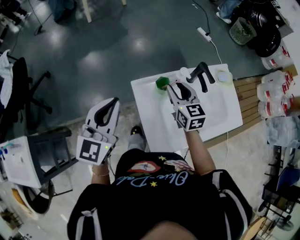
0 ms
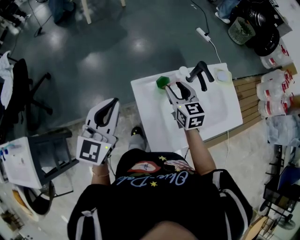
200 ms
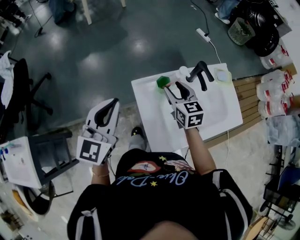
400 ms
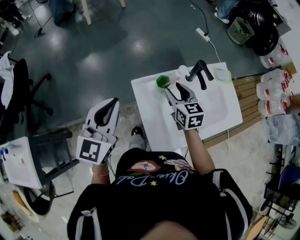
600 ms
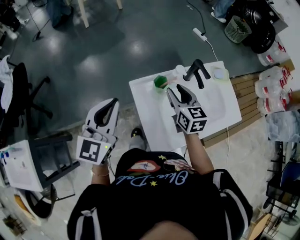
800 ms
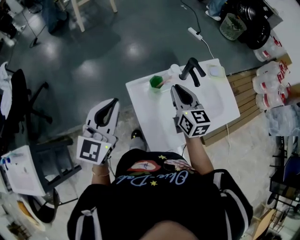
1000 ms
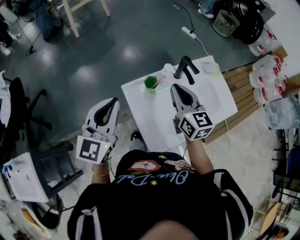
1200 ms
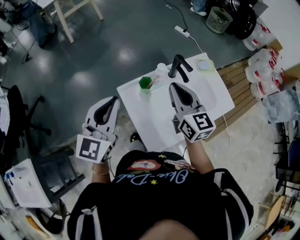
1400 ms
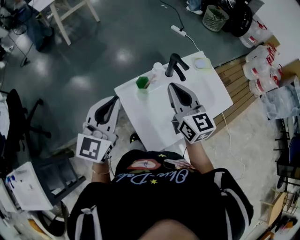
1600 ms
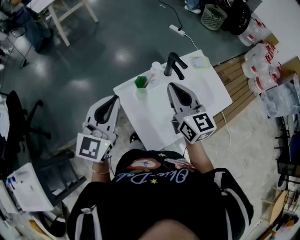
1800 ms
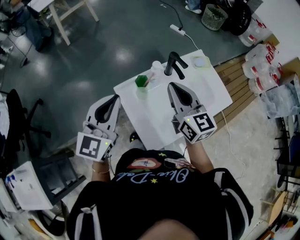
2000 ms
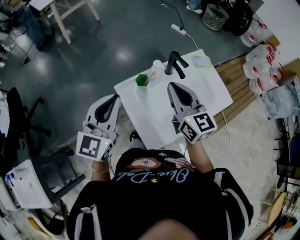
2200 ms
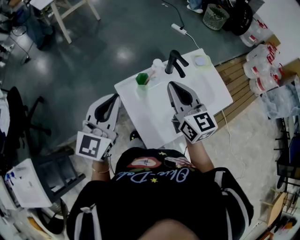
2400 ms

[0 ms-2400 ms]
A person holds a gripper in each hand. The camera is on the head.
0 ms to 1200 ms: The right gripper is displaced upward and backward by roughly 10 cm, and closes its fingers.
1200 ms to 2400 ms: The right gripper shifts by approximately 5 cm.

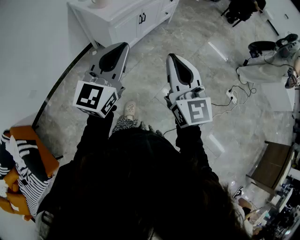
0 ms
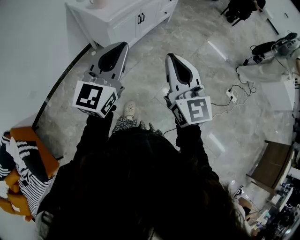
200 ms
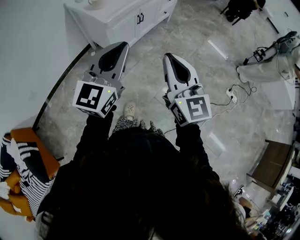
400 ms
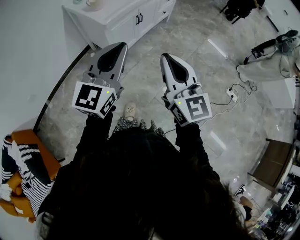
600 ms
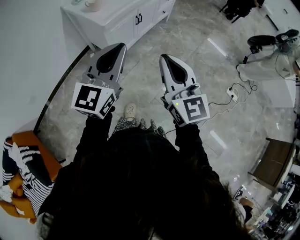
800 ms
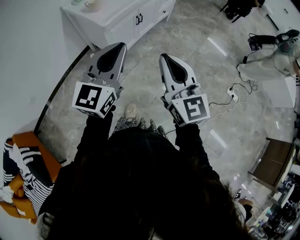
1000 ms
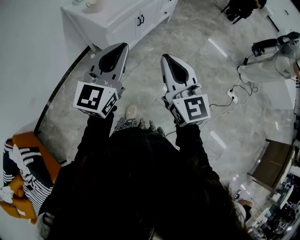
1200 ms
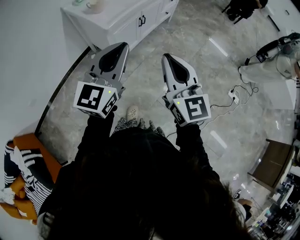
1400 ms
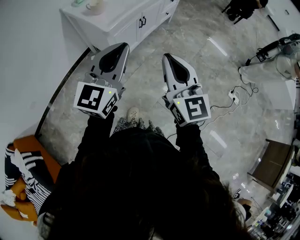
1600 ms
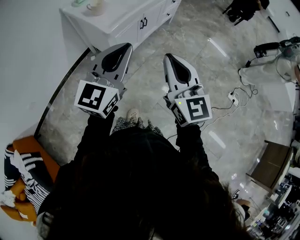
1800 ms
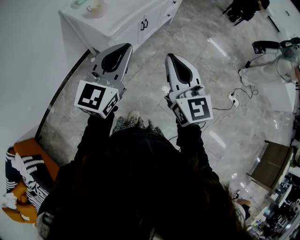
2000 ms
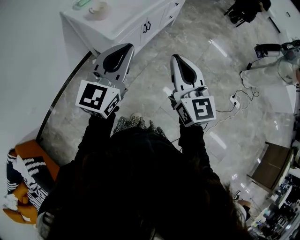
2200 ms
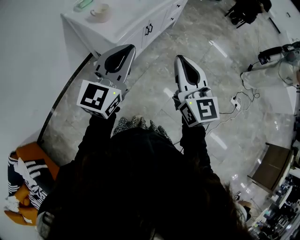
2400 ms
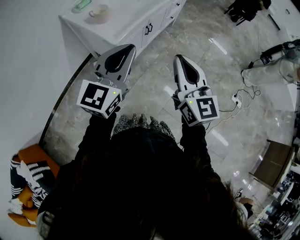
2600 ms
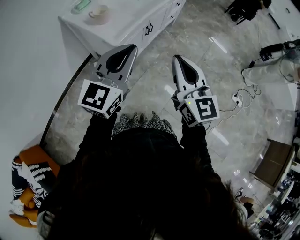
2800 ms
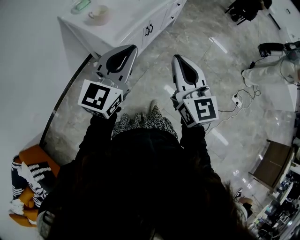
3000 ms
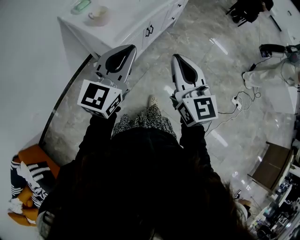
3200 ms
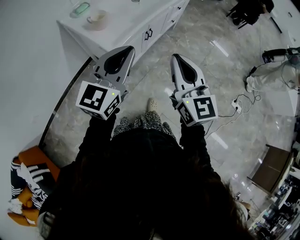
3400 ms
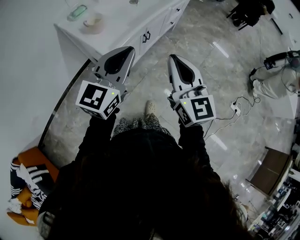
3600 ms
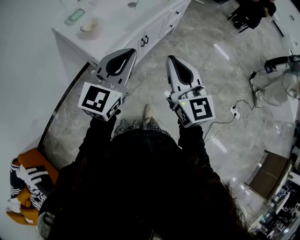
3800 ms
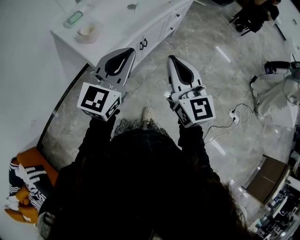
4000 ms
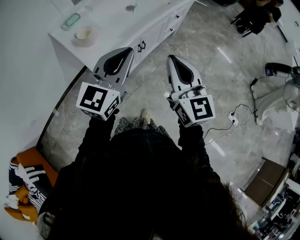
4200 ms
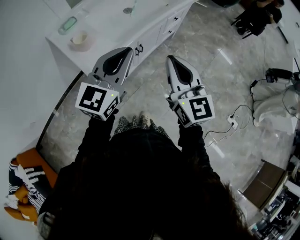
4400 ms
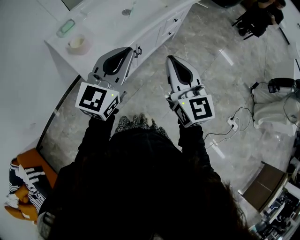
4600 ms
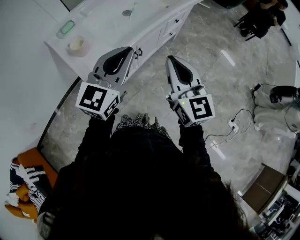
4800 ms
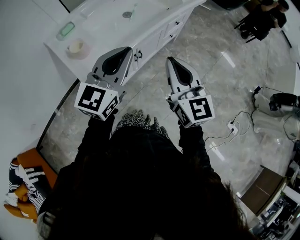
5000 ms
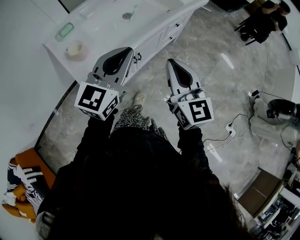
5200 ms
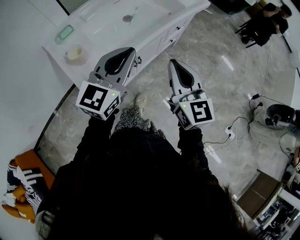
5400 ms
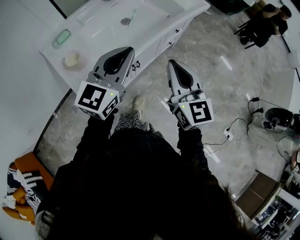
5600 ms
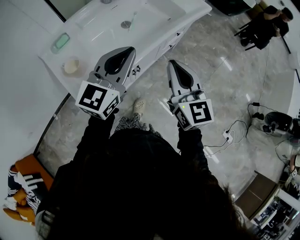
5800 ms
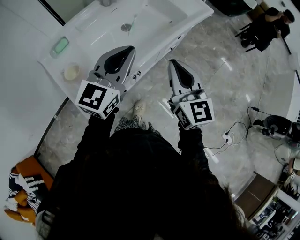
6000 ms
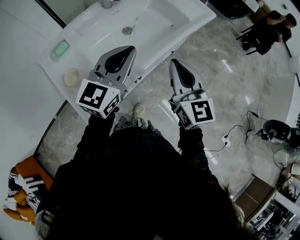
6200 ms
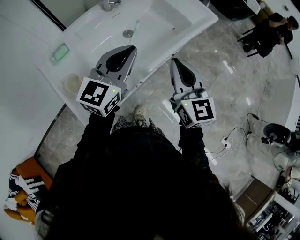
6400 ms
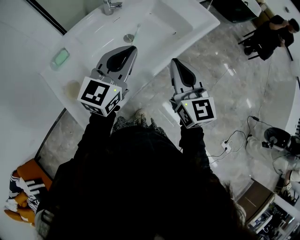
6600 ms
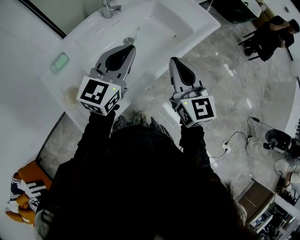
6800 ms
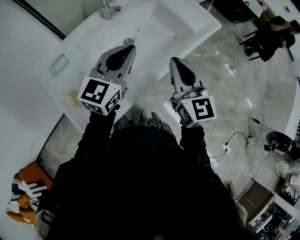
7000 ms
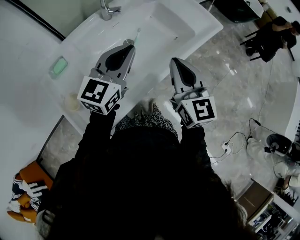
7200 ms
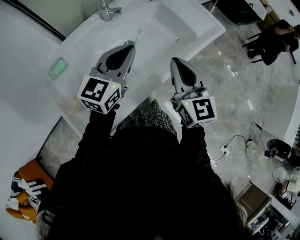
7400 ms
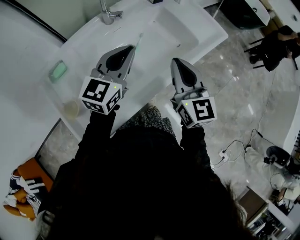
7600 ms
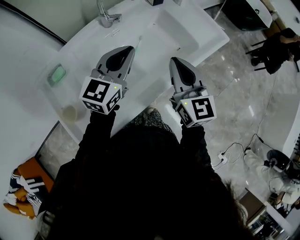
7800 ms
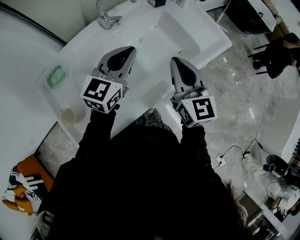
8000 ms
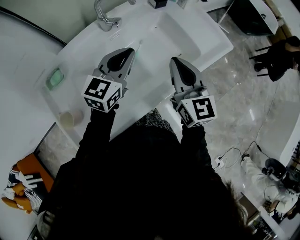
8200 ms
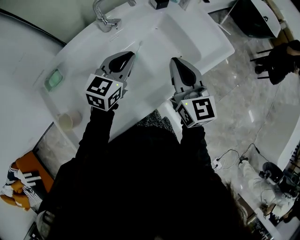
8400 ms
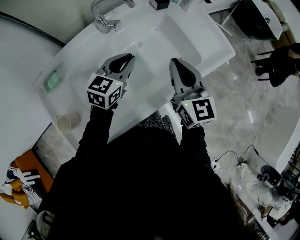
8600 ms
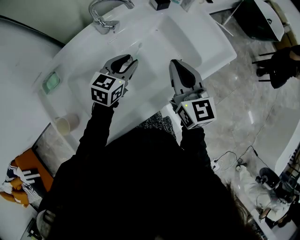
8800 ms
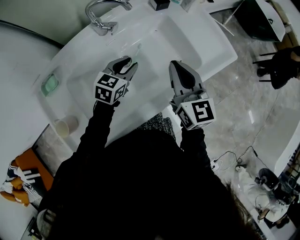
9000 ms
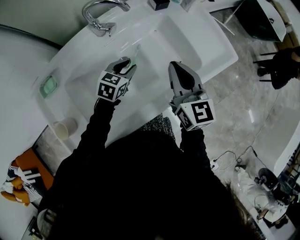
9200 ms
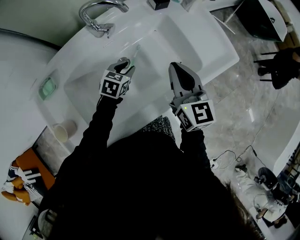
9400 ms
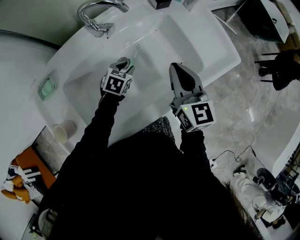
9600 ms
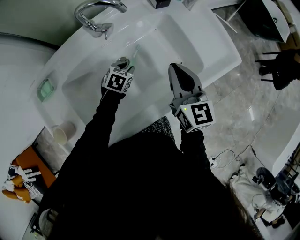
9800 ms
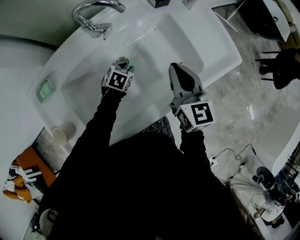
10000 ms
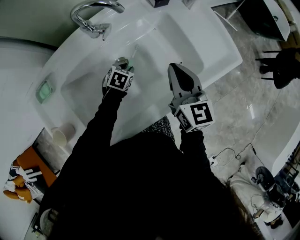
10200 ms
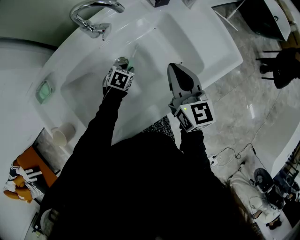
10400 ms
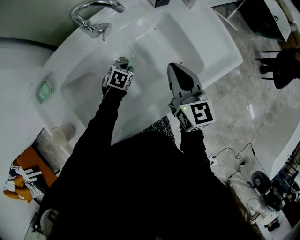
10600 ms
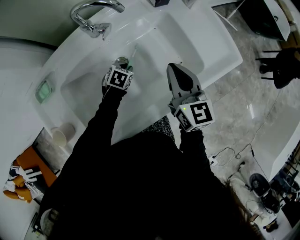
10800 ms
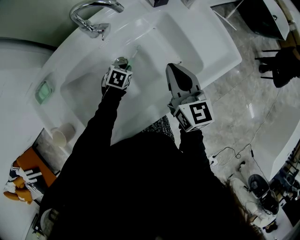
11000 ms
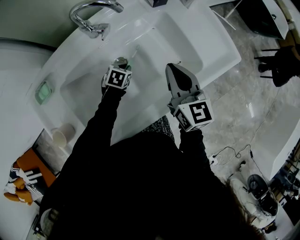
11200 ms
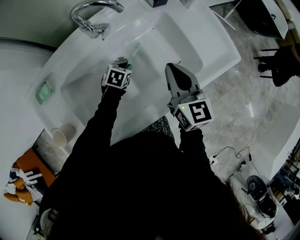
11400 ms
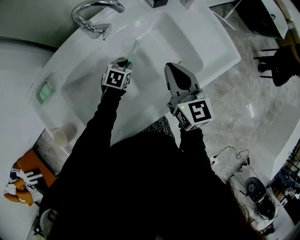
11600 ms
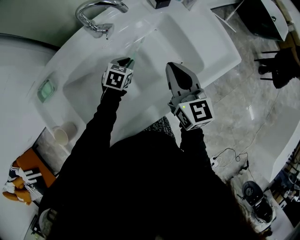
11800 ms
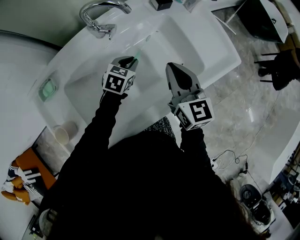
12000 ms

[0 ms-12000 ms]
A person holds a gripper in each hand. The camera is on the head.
0 ms to 1600 ms: The grippers both shift forward by about 10 cm.
1600 ms to 3000 ms: The two grippers go about 10 cm forward.
3000 ms to 4400 ms: The grippers both shift forward and to the right by some 20 cm.
4400 ms to 6000 ms: Both grippers travel together forward, some 20 cm.
6000 ms to 7600 ms: The two grippers go about 20 cm forward.
7600 ms to 9000 ms: The right gripper heads forward, covering about 15 cm, while the left gripper is displaced downward and forward by roughly 20 cm, rotates some 30 degrees, and opens.
9000 ms to 10400 ms: The right gripper ends up approximately 5 cm from where it was; the left gripper is displaced downward by approximately 20 cm, and changes its angle by roughly 30 degrees.
10400 ms to 12000 ms: The left gripper is displaced upward by approximately 10 cm.

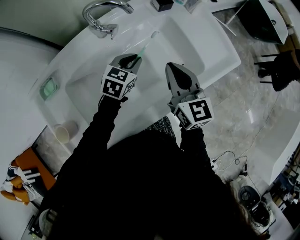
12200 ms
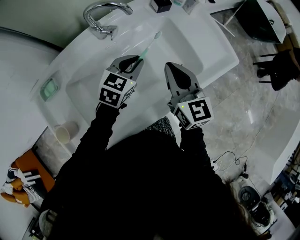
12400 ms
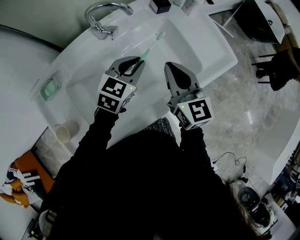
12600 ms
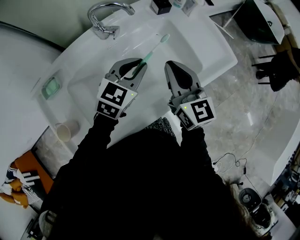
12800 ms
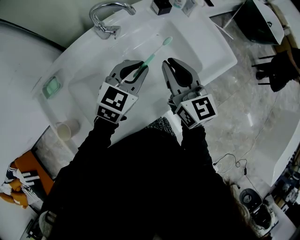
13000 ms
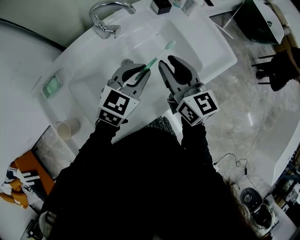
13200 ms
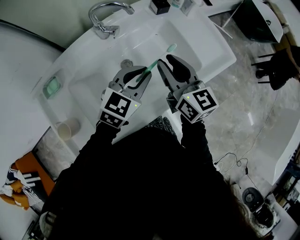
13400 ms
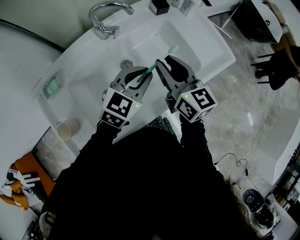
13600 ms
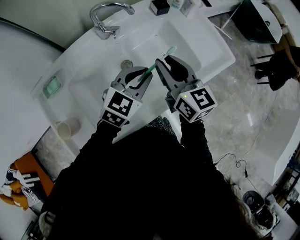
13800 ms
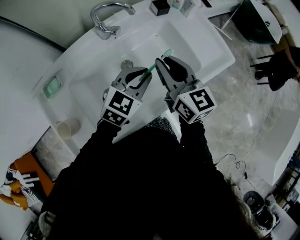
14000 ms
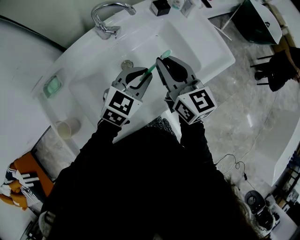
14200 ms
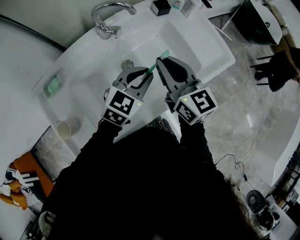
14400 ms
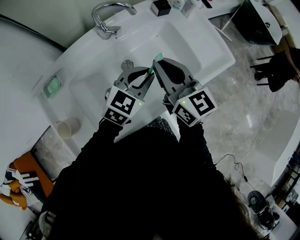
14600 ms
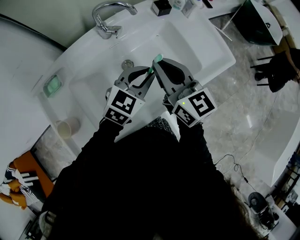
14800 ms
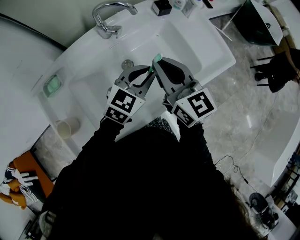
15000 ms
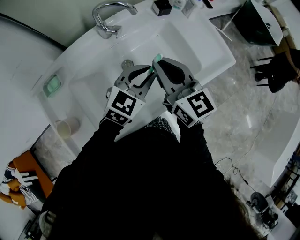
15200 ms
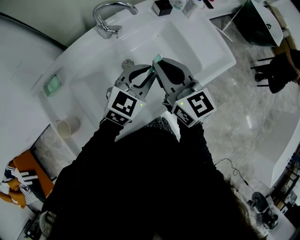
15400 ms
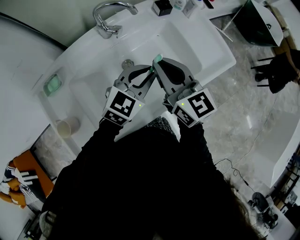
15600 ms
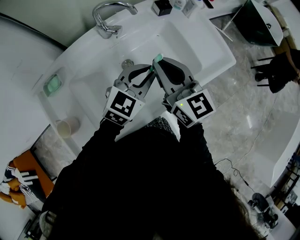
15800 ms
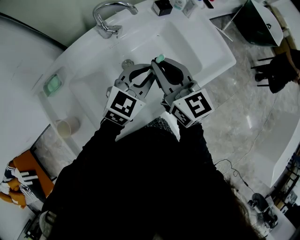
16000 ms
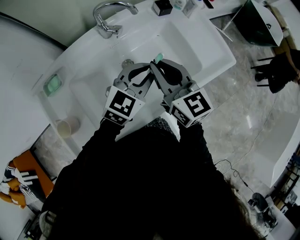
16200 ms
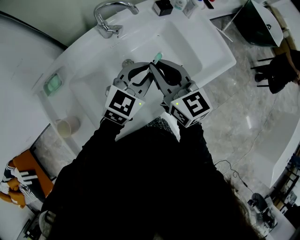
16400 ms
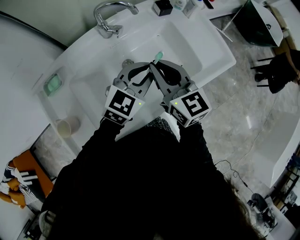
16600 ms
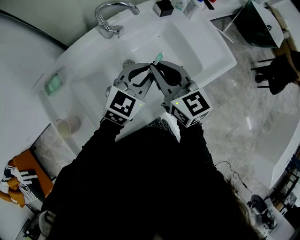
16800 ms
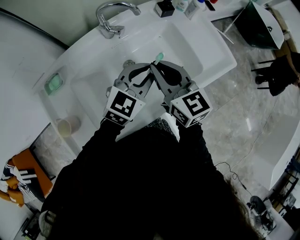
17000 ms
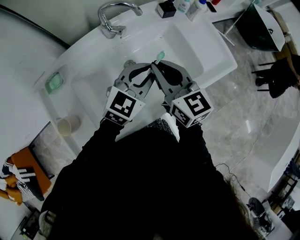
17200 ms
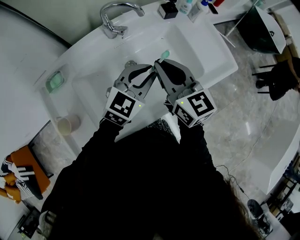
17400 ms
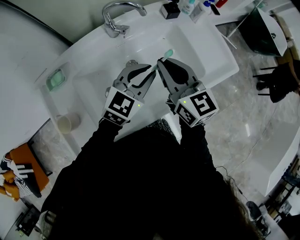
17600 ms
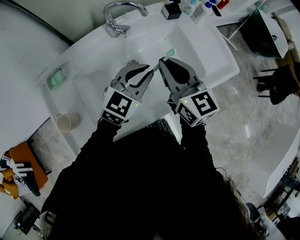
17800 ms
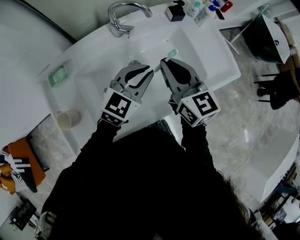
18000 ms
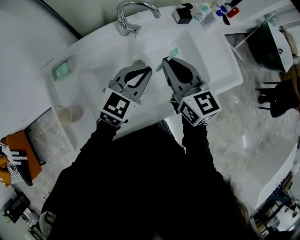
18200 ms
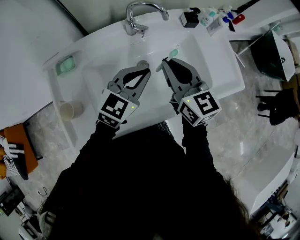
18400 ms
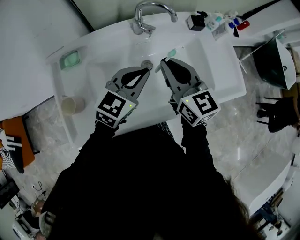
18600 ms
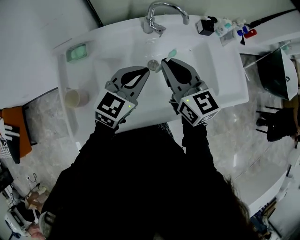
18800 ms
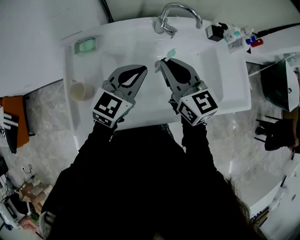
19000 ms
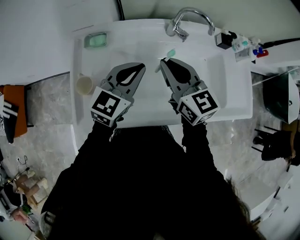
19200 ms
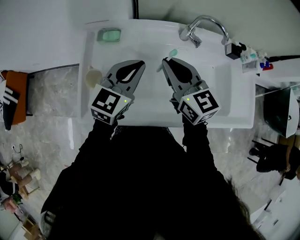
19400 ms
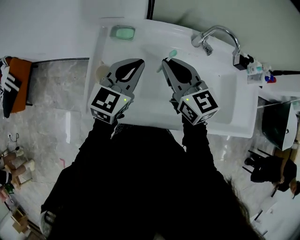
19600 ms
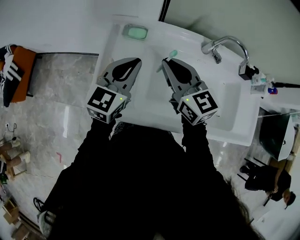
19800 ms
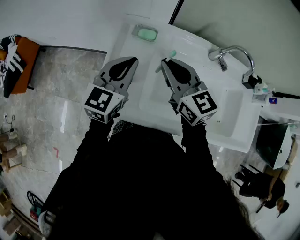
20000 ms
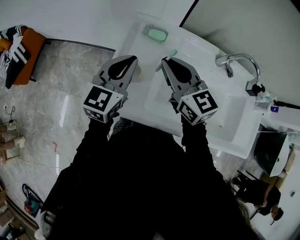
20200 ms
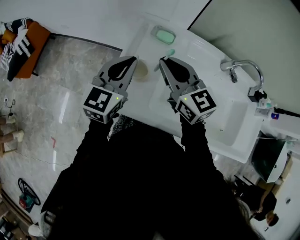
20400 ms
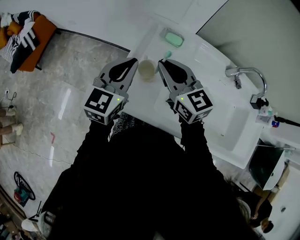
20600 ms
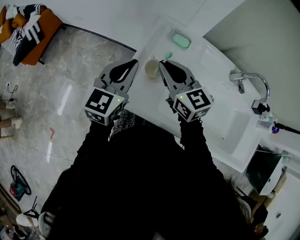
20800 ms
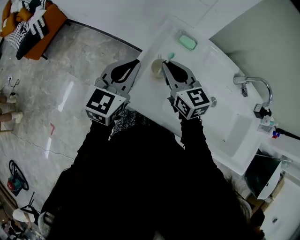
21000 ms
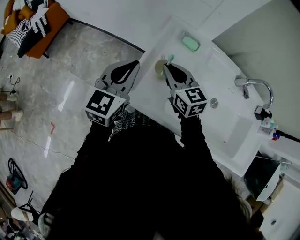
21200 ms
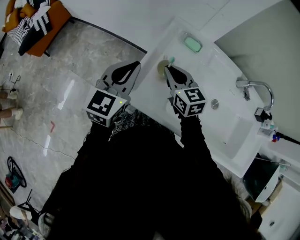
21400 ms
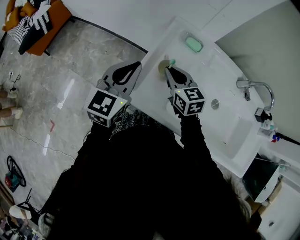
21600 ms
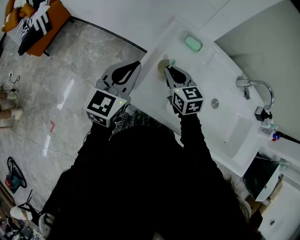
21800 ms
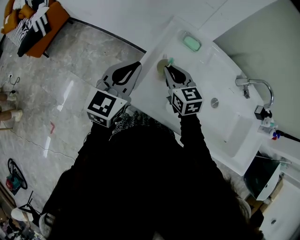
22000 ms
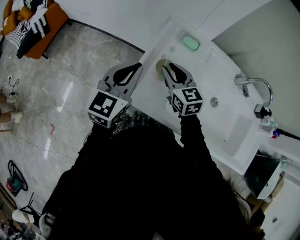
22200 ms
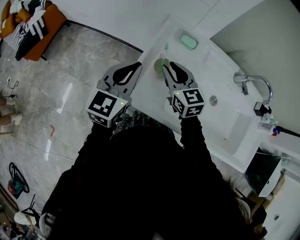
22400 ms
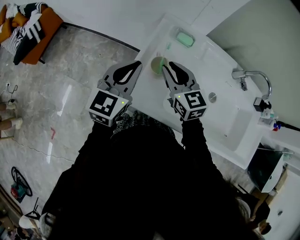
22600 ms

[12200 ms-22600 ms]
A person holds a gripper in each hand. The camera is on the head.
12200 ms to 13600 ms: The left gripper goes approximately 15 cm upward and backward. The right gripper opens up.
13600 ms to 15200 ms: The right gripper closes its fingers.
15200 ms to 18200 ms: There are only small adjustments of the grippers.
18200 ms to 19600 ms: The left gripper ends up roughly 25 cm from where it was, and turns by roughly 40 degrees, while the right gripper changes place by roughly 25 cm, and swivels approximately 30 degrees.
19600 ms to 21200 ms: Both grippers move to the left, roughly 25 cm. The right gripper changes its angle by roughly 20 degrees; the left gripper changes its angle by about 30 degrees.
21200 ms to 22600 ms: The grippers stay close to where they were, moving slightly.
